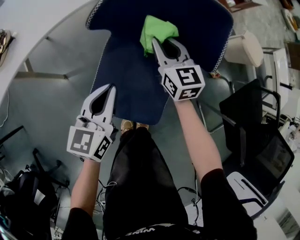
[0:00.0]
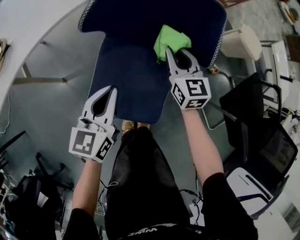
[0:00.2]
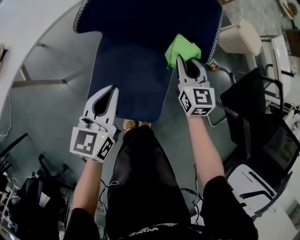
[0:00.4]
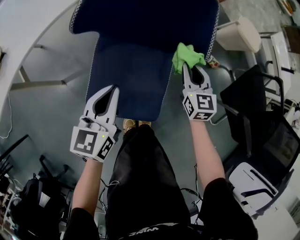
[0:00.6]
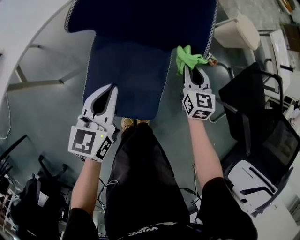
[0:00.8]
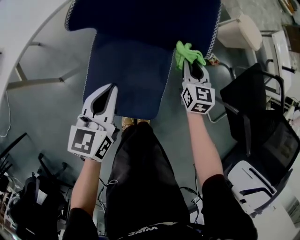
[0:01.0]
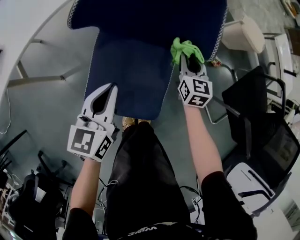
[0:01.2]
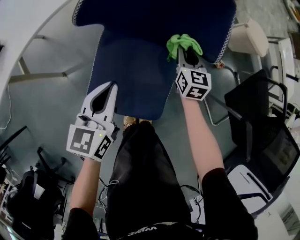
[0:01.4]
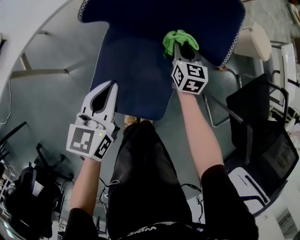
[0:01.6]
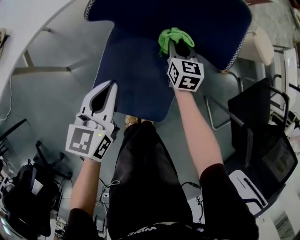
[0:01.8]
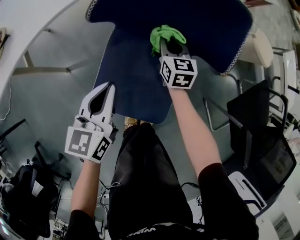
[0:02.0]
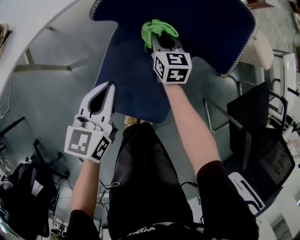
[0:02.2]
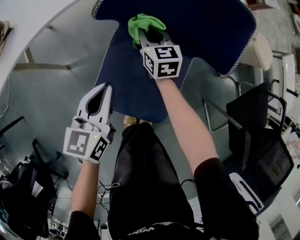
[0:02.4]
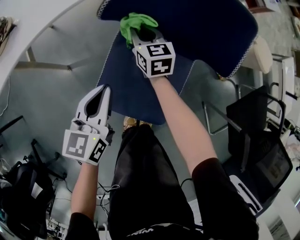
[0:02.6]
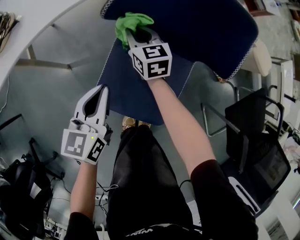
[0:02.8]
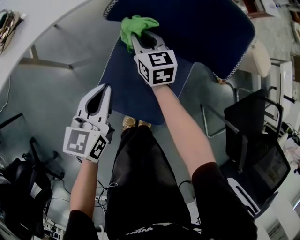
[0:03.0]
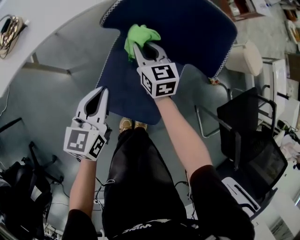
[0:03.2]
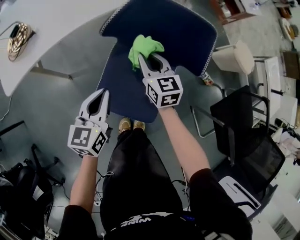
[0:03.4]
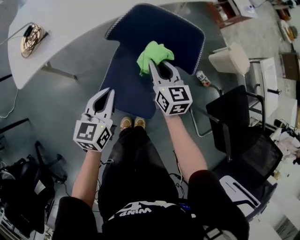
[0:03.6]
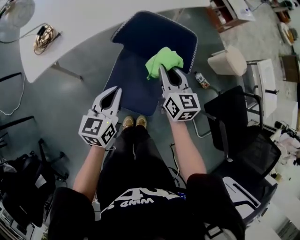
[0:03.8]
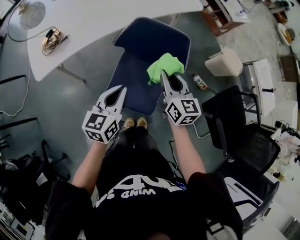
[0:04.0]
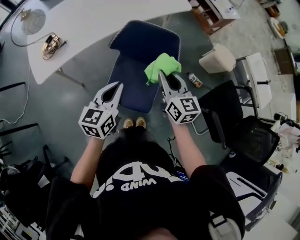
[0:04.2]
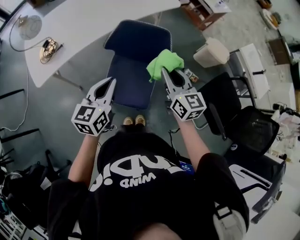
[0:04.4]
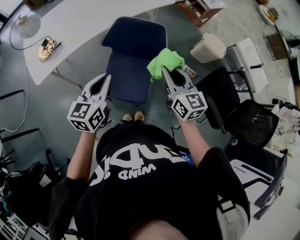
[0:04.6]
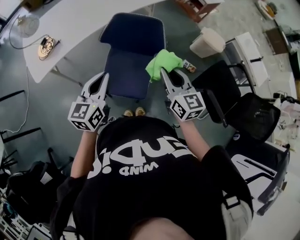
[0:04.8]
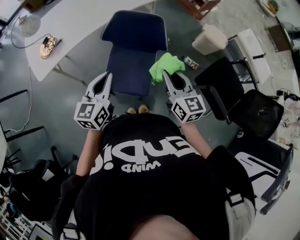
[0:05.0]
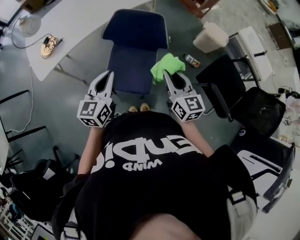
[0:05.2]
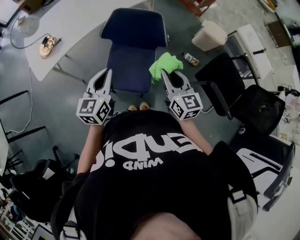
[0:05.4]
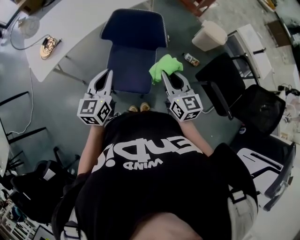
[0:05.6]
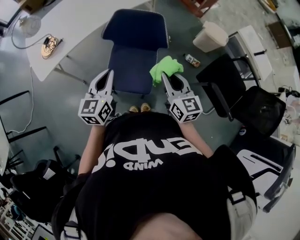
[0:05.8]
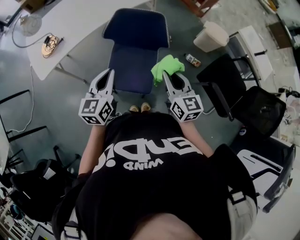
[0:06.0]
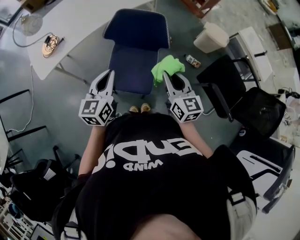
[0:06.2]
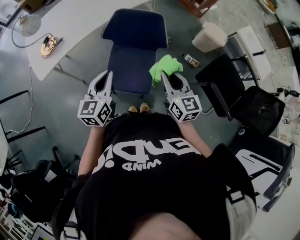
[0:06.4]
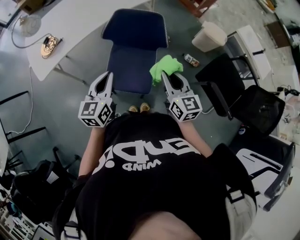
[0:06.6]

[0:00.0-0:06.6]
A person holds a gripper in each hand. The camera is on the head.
0:00.0 to 0:01.6: The right gripper heads downward and to the right, covering roughly 15 cm, and turns by about 20 degrees.
0:01.6 to 0:03.2: The right gripper goes approximately 20 cm to the left and upward, and rotates approximately 20 degrees; the left gripper travels to the left by about 5 cm.
0:03.2 to 0:05.0: The right gripper is displaced upward, backward and to the right by about 50 cm, while the left gripper goes roughly 30 cm upward and backward.
0:05.0 to 0:06.6: There are only small adjustments of the grippers.

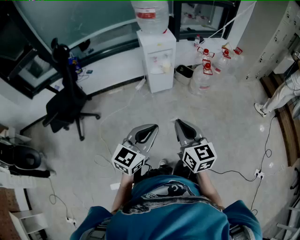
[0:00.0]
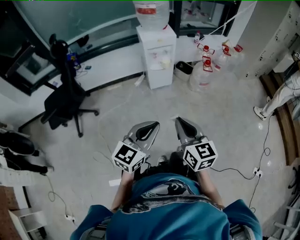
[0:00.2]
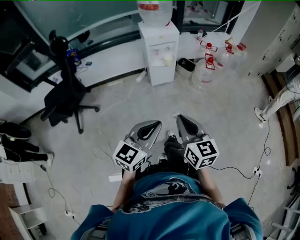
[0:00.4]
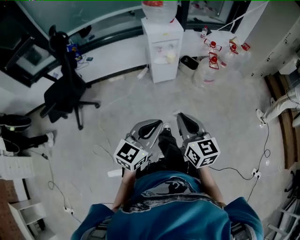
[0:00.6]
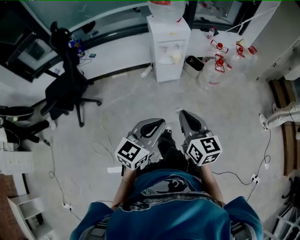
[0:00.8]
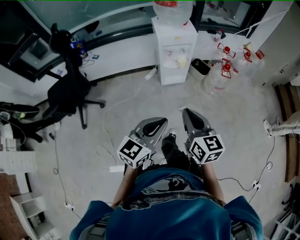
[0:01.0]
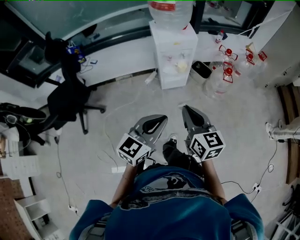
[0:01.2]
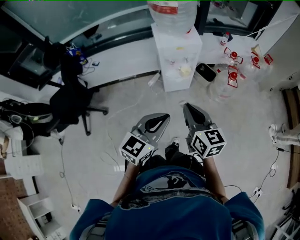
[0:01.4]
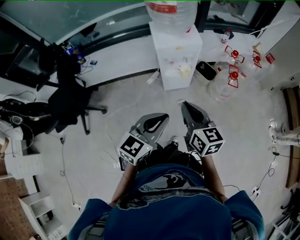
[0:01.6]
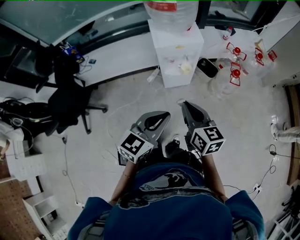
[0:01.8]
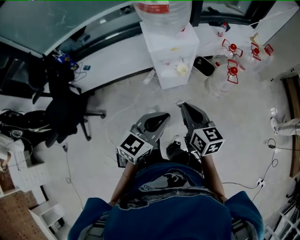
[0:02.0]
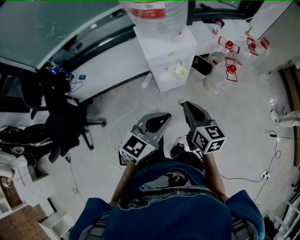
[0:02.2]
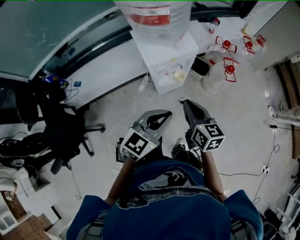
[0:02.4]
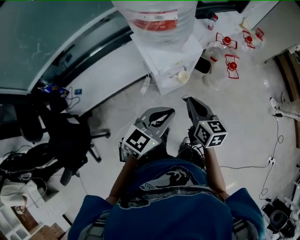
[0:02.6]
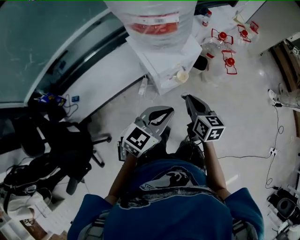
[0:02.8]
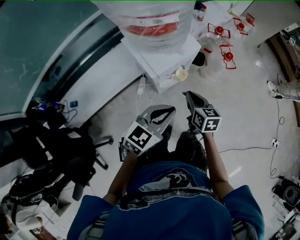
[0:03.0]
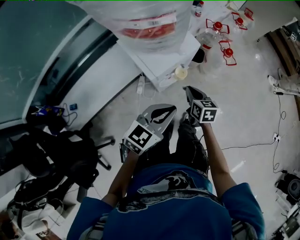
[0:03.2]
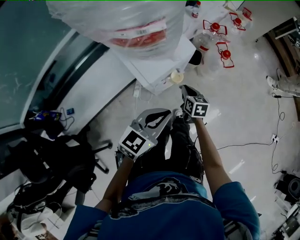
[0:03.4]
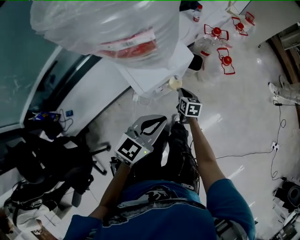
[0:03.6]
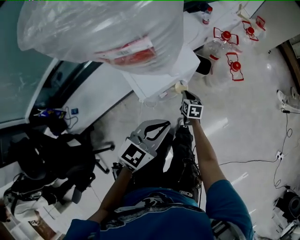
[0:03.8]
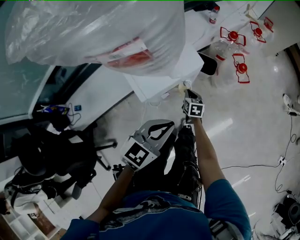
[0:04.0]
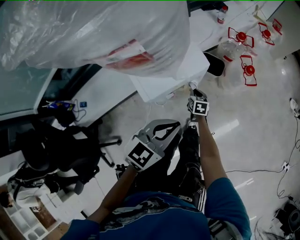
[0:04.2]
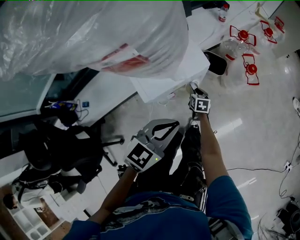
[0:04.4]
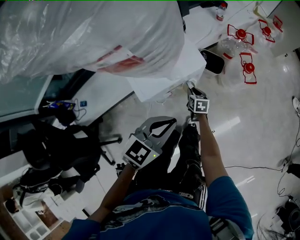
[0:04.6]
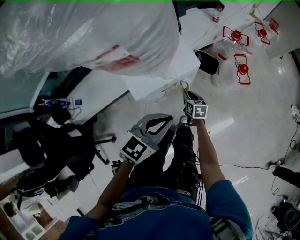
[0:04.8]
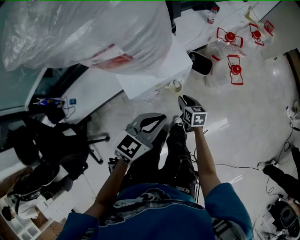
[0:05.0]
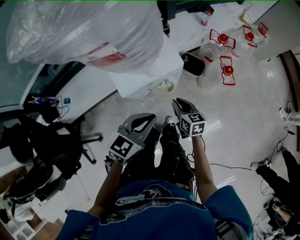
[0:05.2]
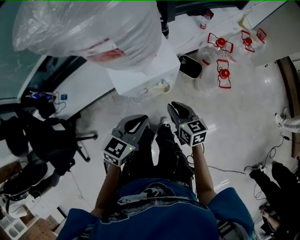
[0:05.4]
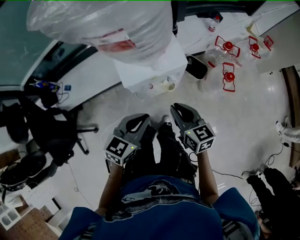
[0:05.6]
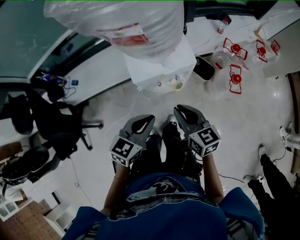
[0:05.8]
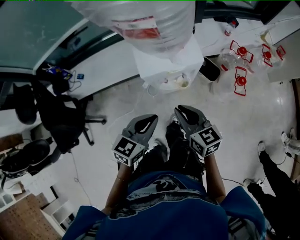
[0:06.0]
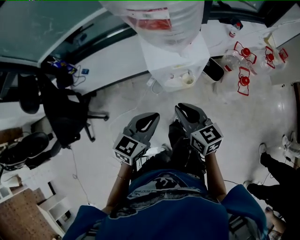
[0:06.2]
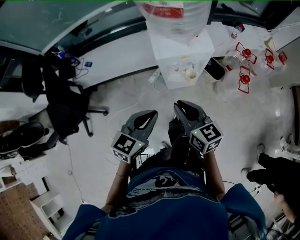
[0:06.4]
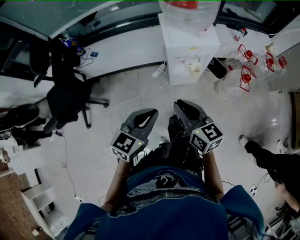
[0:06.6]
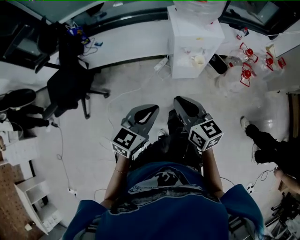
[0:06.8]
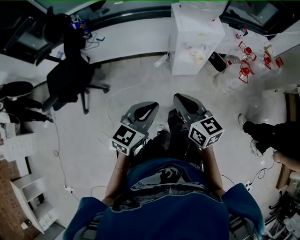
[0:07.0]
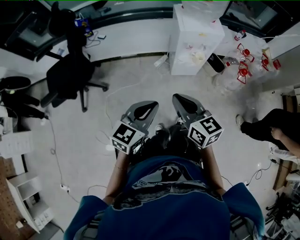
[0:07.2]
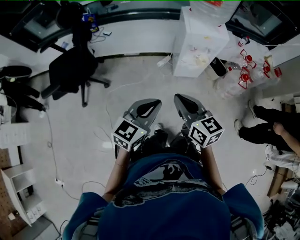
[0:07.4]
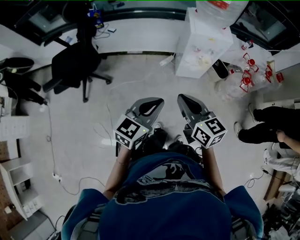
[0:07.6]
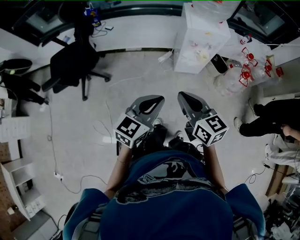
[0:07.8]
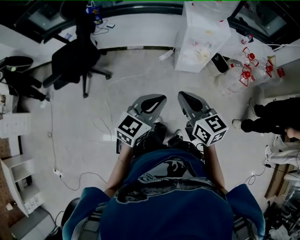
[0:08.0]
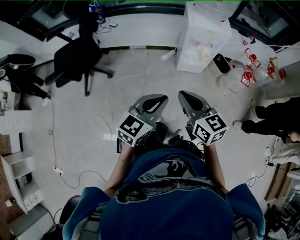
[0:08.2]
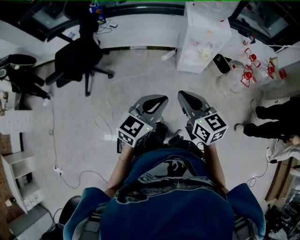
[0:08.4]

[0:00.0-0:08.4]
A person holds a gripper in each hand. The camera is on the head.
0:00.0 to 0:01.4: Both grippers move forward, some 30 cm.
0:01.4 to 0:02.8: The left gripper moves roughly 25 cm, and rotates roughly 30 degrees; the right gripper shifts by approximately 25 cm, and swivels approximately 30 degrees.
0:02.8 to 0:04.2: The left gripper shifts some 10 cm forward and downward; the right gripper heads downward and forward, covering approximately 35 cm.
0:04.2 to 0:05.6: The right gripper heads upward, covering roughly 30 cm, and rotates some 40 degrees; the left gripper swivels some 30 degrees.
0:05.6 to 0:07.0: The grippers both shift backward and to the left by roughly 35 cm.
0:07.0 to 0:08.4: Both grippers move backward, about 5 cm.

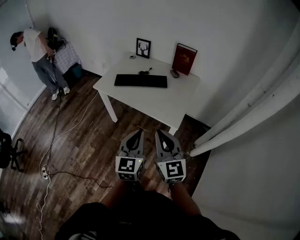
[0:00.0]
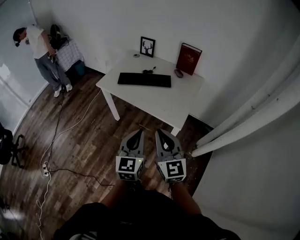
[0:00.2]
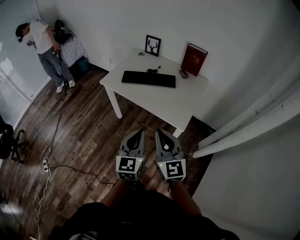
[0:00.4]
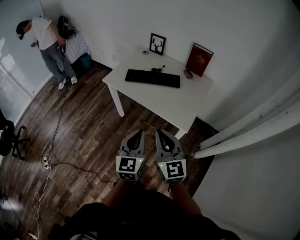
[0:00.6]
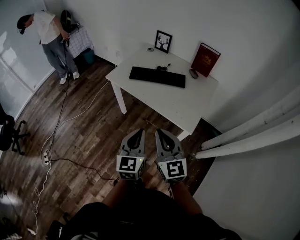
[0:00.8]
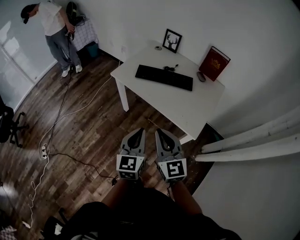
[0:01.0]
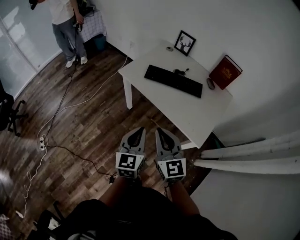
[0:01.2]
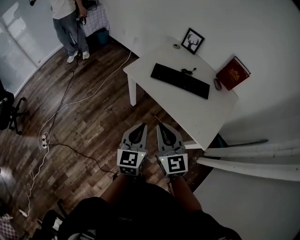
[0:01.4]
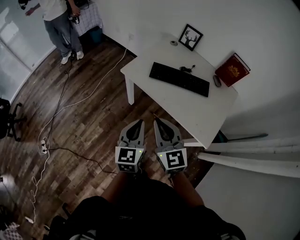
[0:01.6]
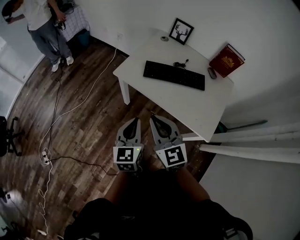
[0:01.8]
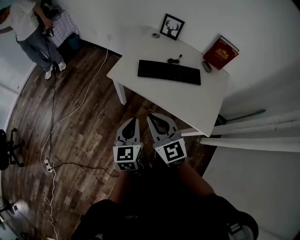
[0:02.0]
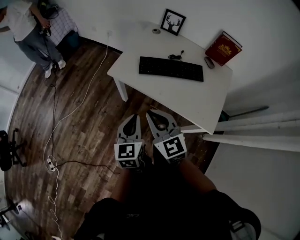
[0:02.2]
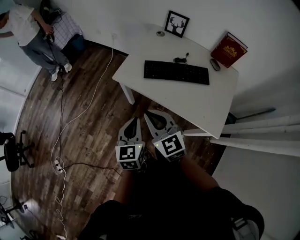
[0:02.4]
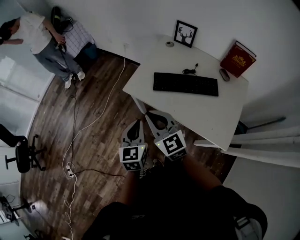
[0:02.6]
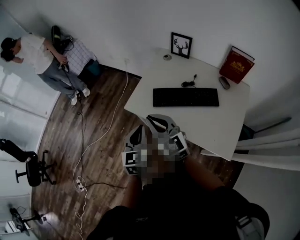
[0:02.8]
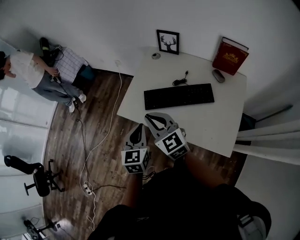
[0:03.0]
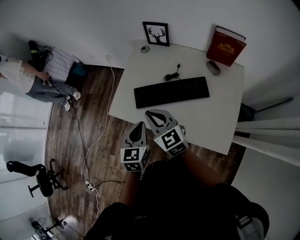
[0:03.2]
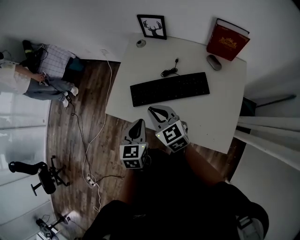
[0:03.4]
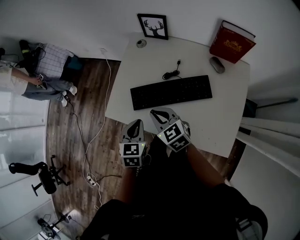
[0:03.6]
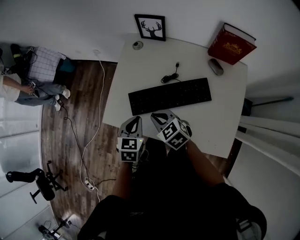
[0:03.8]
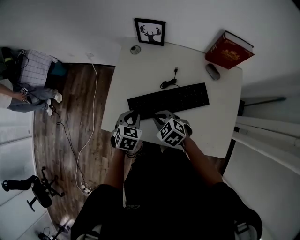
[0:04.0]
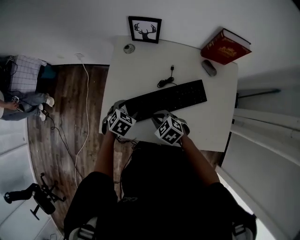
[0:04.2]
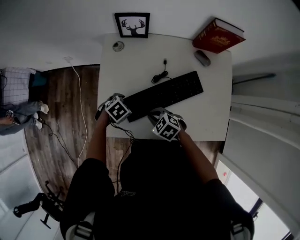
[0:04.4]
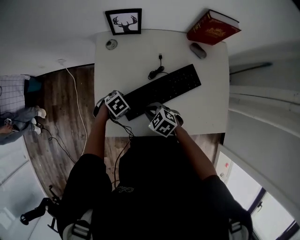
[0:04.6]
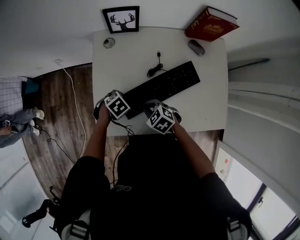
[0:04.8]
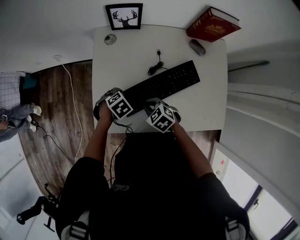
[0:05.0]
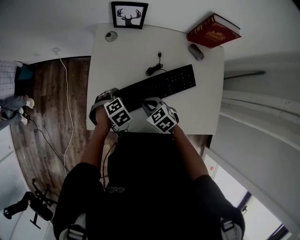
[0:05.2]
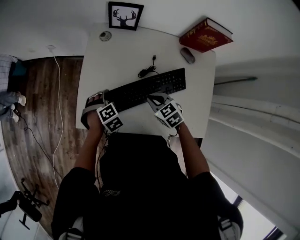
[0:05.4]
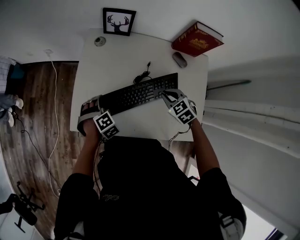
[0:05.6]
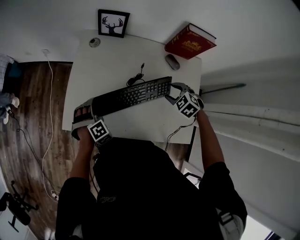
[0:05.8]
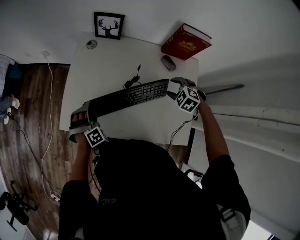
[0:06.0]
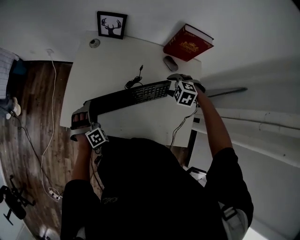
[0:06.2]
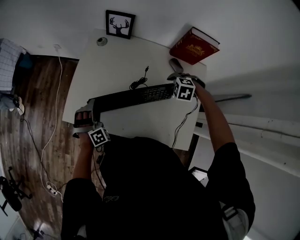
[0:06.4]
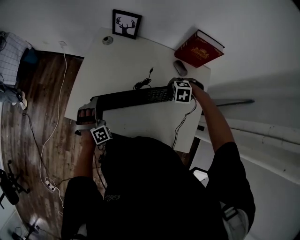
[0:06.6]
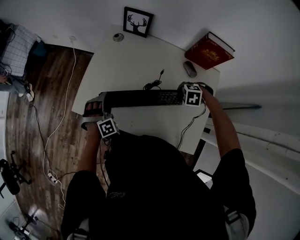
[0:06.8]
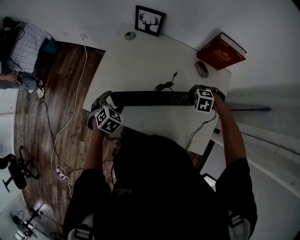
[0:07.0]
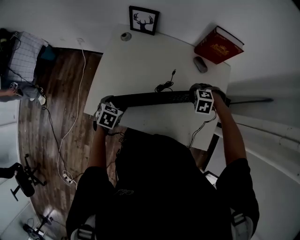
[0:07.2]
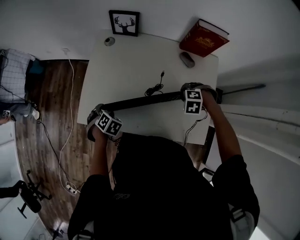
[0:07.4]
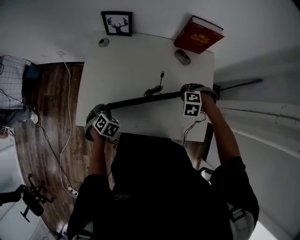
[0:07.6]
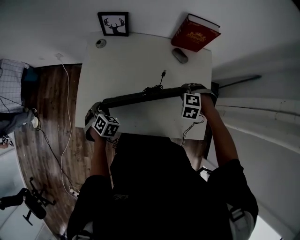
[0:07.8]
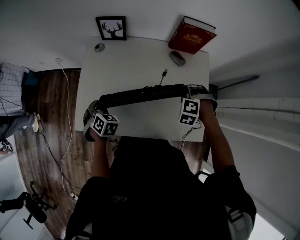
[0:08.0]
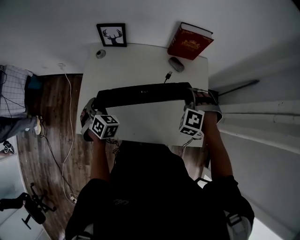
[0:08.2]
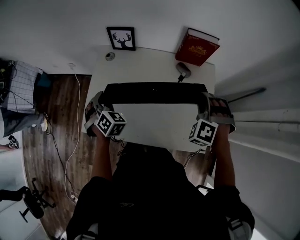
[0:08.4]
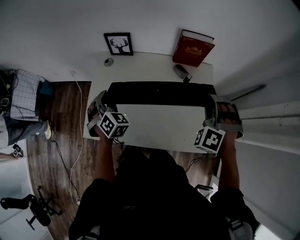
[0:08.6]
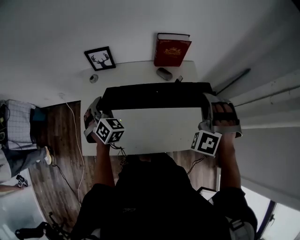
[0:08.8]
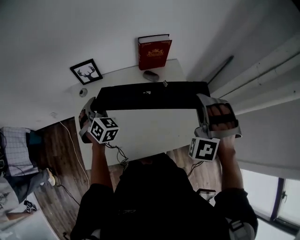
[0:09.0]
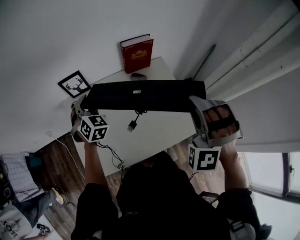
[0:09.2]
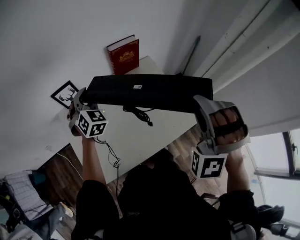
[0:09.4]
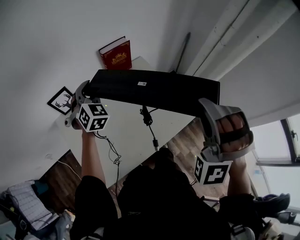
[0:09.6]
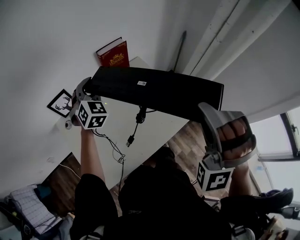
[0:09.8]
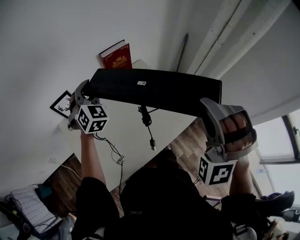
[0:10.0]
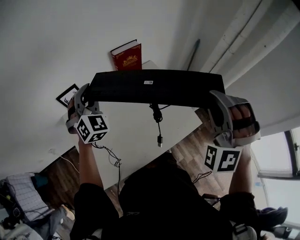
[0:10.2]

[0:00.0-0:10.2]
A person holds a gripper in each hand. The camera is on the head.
0:00.0 to 0:01.4: Both grippers travel together forward and to the left, about 25 cm.
0:01.4 to 0:03.0: The two grippers go about 25 cm forward.
0:03.0 to 0:04.4: Both grippers move downward, some 25 cm. The left gripper tilts its fingers approximately 50 degrees downward, and opens. The right gripper tips its fingers downward by roughly 40 degrees.
0:04.4 to 0:05.8: The right gripper ends up approximately 30 cm from where it was, changes its angle by approximately 20 degrees, and opens its fingers, while the left gripper moves some 5 cm, and swivels some 40 degrees.
0:05.8 to 0:07.2: The right gripper rotates approximately 40 degrees. The left gripper rolls counterclockwise, seen from behind, by about 50 degrees.
0:07.2 to 0:08.8: The left gripper goes roughly 20 cm upward, turns by approximately 50 degrees, and closes, while the right gripper goes about 30 cm upward, and tilts its fingers roughly 60 degrees upward.
0:08.8 to 0:10.2: The two grippers go approximately 15 cm upward. The left gripper turns by approximately 40 degrees; the right gripper rotates roughly 20 degrees.
